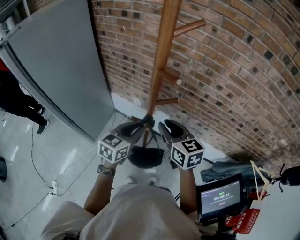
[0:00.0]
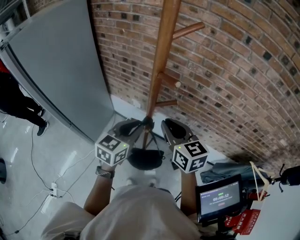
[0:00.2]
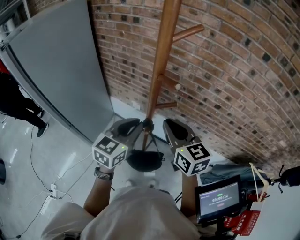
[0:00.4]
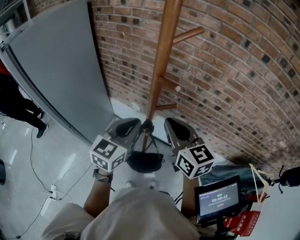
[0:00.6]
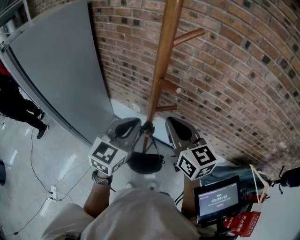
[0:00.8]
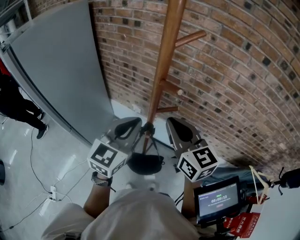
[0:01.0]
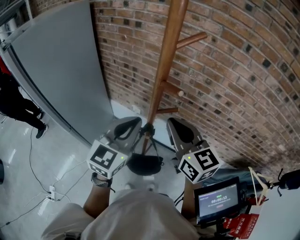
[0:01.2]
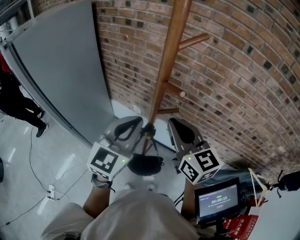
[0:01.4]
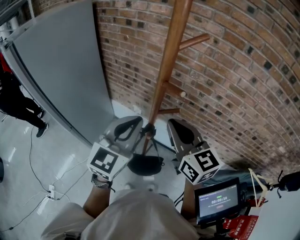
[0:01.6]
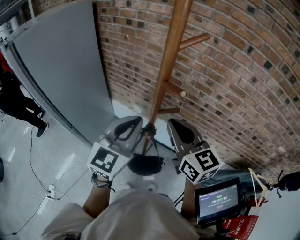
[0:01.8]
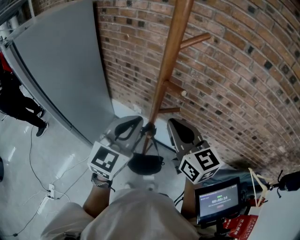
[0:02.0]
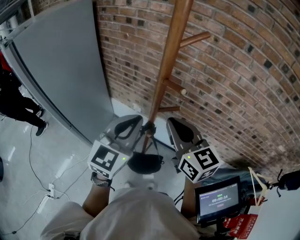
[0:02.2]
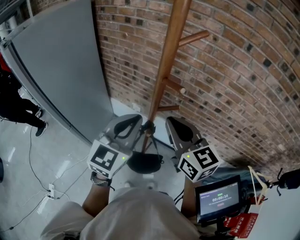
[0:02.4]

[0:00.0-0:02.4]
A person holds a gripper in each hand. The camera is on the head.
0:00.0 to 0:01.2: Both grippers travel together upward, about 15 cm. The left gripper changes its angle by approximately 20 degrees. The right gripper closes.
0:01.2 to 0:02.4: There are only small adjustments of the grippers.

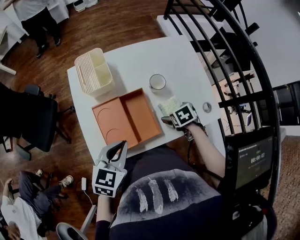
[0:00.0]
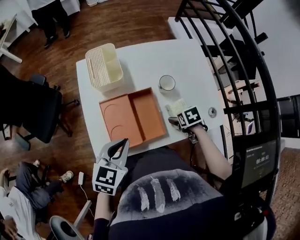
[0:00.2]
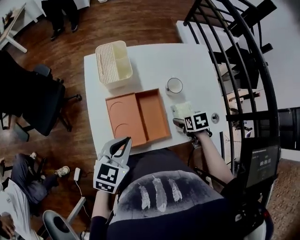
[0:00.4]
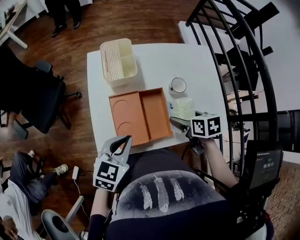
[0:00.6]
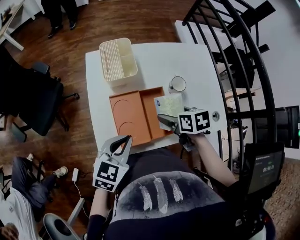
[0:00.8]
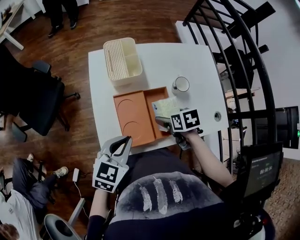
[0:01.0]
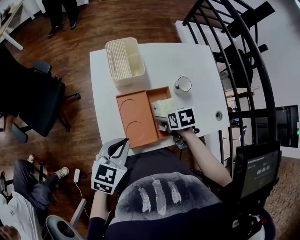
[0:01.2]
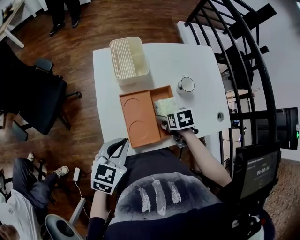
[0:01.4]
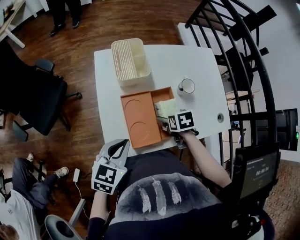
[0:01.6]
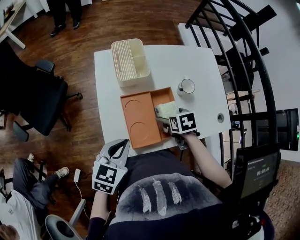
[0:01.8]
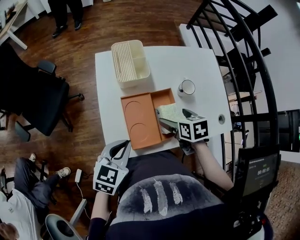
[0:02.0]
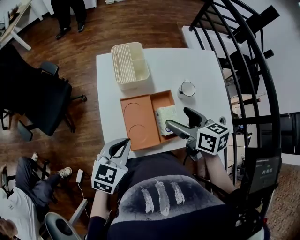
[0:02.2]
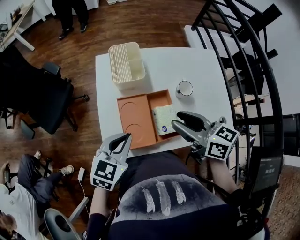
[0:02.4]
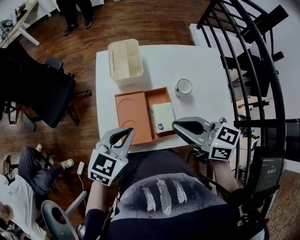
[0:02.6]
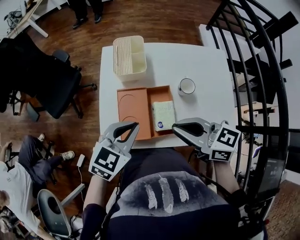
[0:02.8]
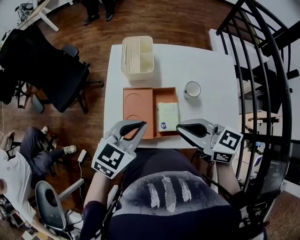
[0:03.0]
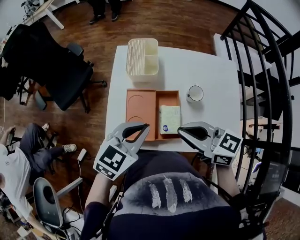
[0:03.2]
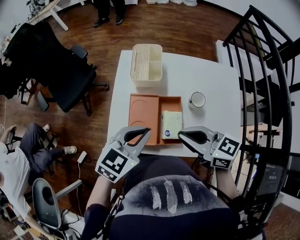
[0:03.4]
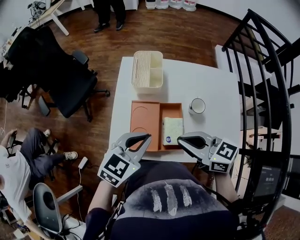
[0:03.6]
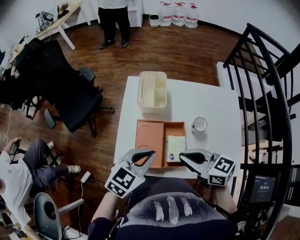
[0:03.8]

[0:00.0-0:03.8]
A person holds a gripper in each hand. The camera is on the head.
0:00.0 to 0:01.2: The left gripper changes place by approximately 10 cm; the right gripper travels upward and back again, some 10 cm each way.
0:01.2 to 0:02.6: The right gripper shifts about 20 cm upward, tips its fingers upward by approximately 50 degrees, and closes; the left gripper shifts some 5 cm to the right.
0:02.6 to 0:03.8: The grippers move only a little.

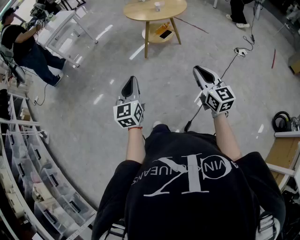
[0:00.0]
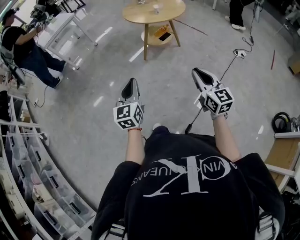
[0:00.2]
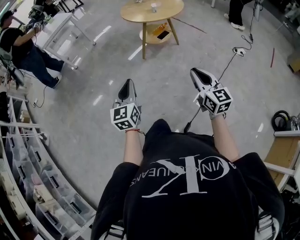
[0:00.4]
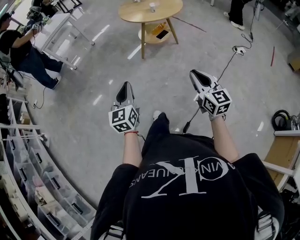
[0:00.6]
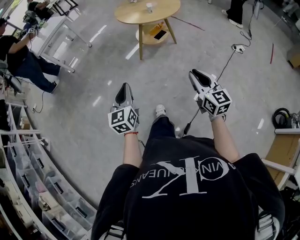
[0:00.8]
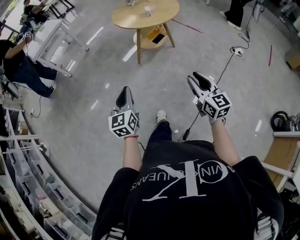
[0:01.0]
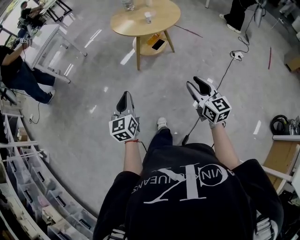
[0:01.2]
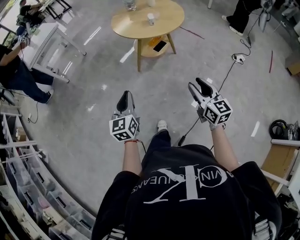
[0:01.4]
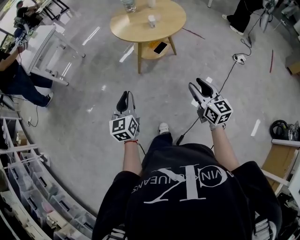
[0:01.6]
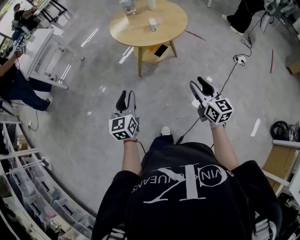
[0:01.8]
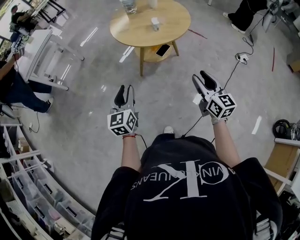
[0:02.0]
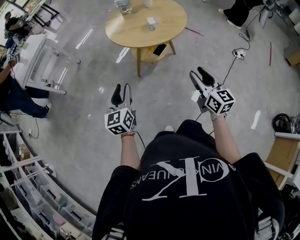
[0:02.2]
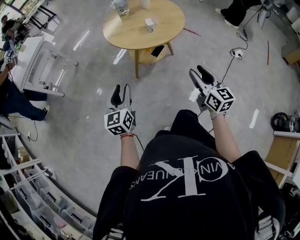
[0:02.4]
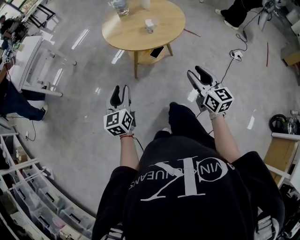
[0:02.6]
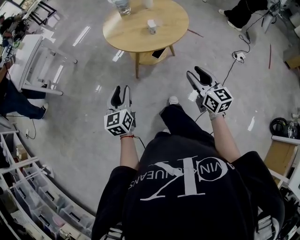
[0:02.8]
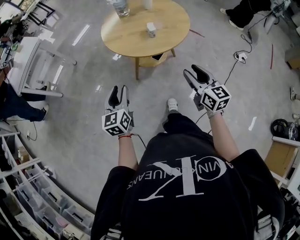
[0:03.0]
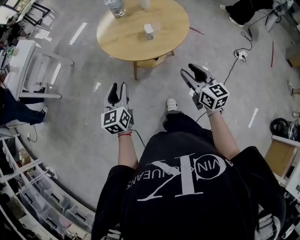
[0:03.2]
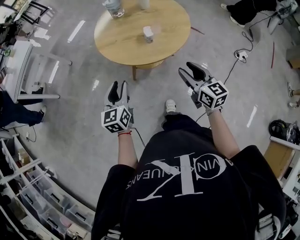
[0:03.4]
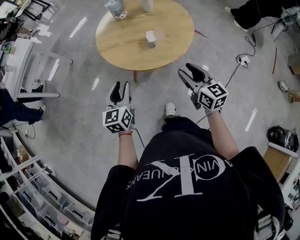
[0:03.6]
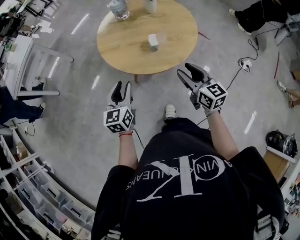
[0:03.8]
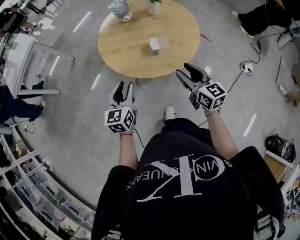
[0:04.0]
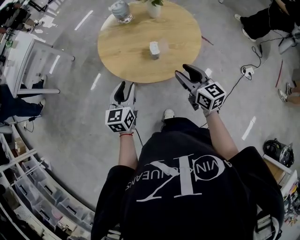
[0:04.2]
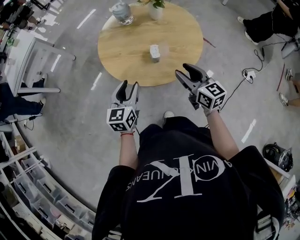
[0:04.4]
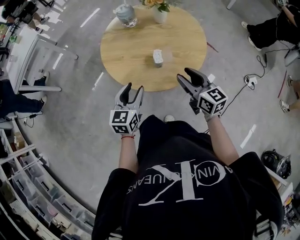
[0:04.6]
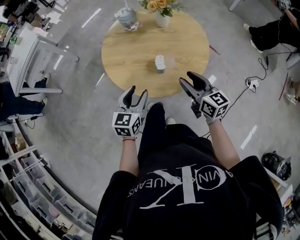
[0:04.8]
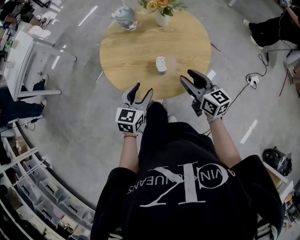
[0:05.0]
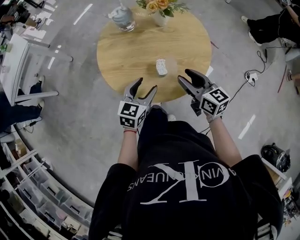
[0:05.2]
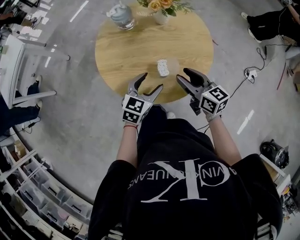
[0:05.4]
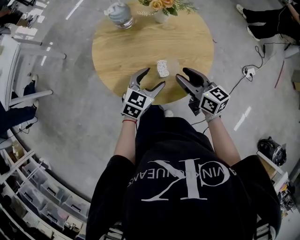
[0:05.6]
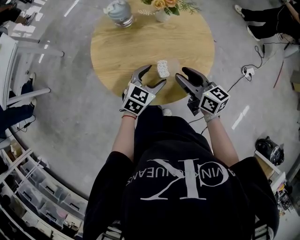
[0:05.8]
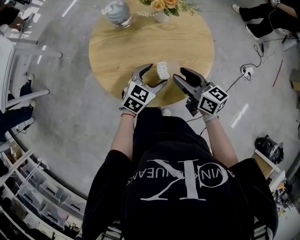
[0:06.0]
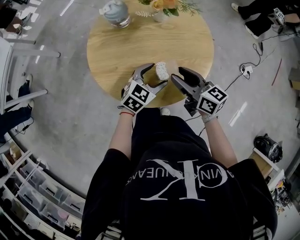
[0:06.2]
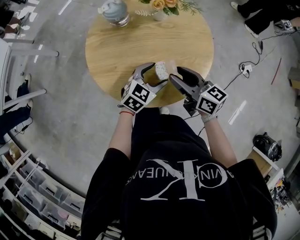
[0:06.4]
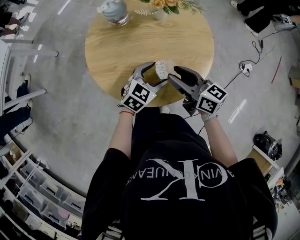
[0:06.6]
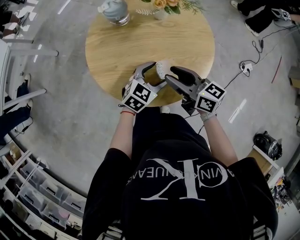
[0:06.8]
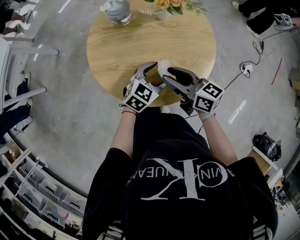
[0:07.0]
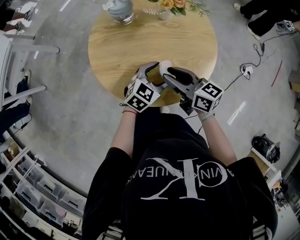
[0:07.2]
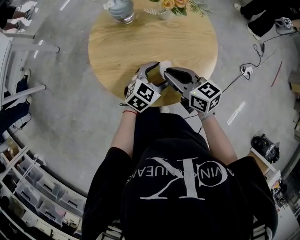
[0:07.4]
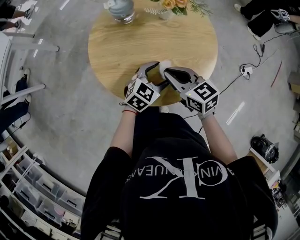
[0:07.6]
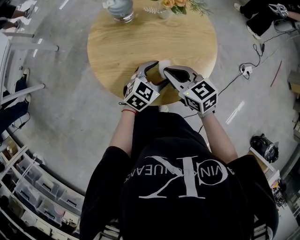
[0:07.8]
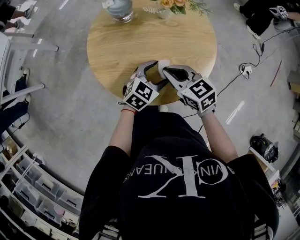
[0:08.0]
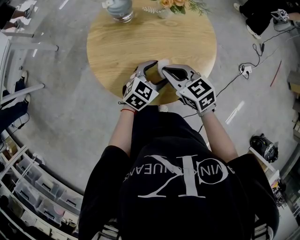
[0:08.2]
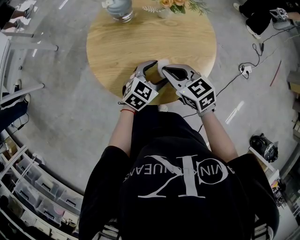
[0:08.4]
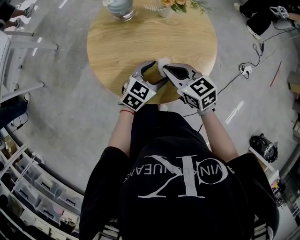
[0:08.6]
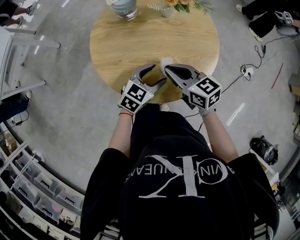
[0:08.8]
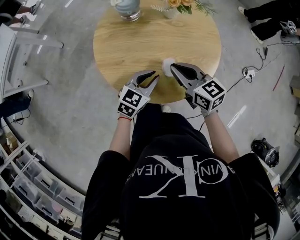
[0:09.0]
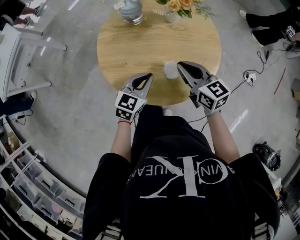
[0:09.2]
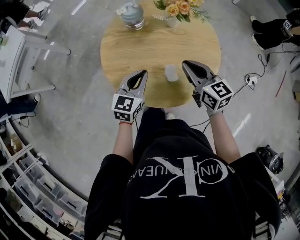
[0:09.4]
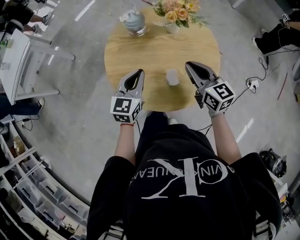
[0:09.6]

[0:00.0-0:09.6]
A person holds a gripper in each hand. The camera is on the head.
0:00.0 to 0:01.6: Both grippers move forward, some 25 cm. The right gripper opens up.
0:01.6 to 0:03.2: The grippers both shift forward by roughly 25 cm.
0:03.2 to 0:04.8: The left gripper travels forward and to the right by roughly 20 cm, while the right gripper travels forward by about 20 cm.
0:04.8 to 0:06.4: The right gripper is displaced forward by roughly 5 cm; the left gripper is displaced forward, to the right and downward by approximately 15 cm, swivels approximately 40 degrees, and opens.
0:06.4 to 0:08.0: The right gripper goes approximately 5 cm to the left, swivels approximately 30 degrees, and closes up.
0:08.0 to 0:09.6: The left gripper is displaced to the left and upward by about 15 cm, changes its angle by some 40 degrees, and closes its fingers. Meanwhile the right gripper shifts roughly 10 cm upward and to the right, and changes its angle by approximately 20 degrees.

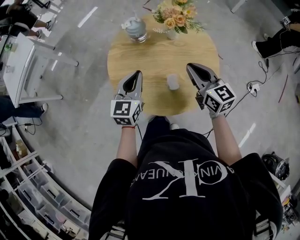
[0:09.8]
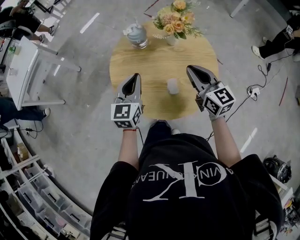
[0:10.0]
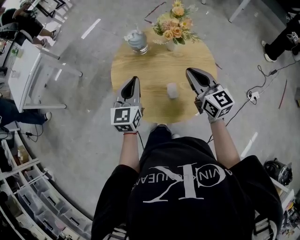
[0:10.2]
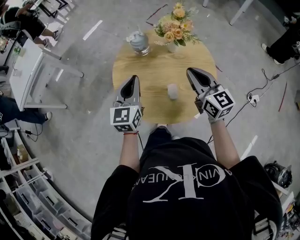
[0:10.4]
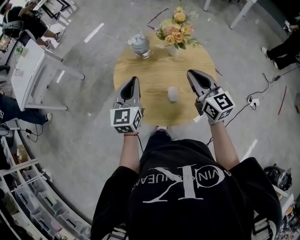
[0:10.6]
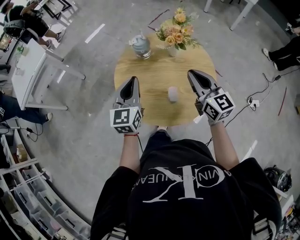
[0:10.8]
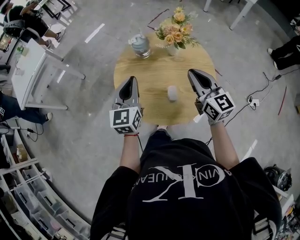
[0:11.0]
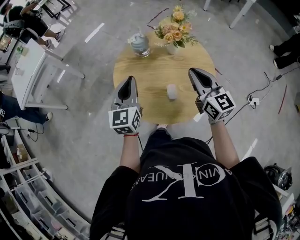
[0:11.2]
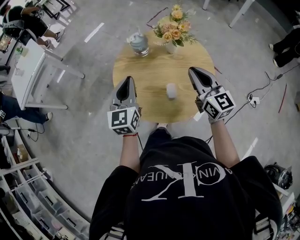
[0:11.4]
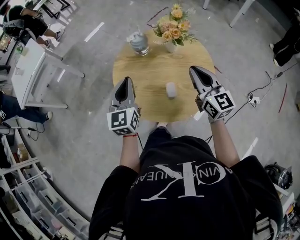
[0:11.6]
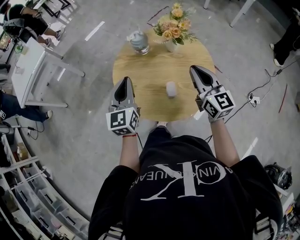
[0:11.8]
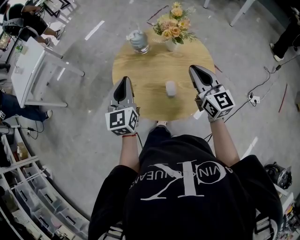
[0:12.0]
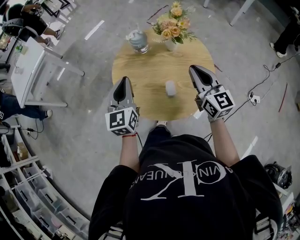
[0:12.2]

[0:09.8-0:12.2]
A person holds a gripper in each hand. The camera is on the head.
0:09.8 to 0:11.0: The grippers both shift upward by about 5 cm.
0:11.0 to 0:12.2: The grippers stay close to where they were, moving slightly.

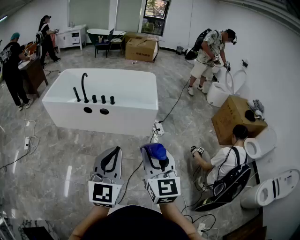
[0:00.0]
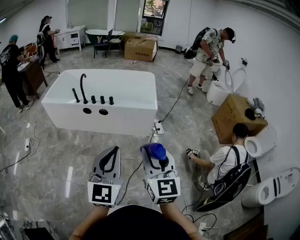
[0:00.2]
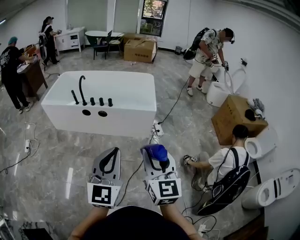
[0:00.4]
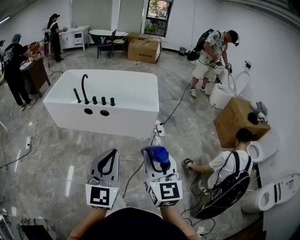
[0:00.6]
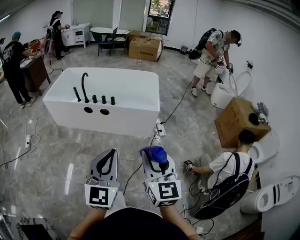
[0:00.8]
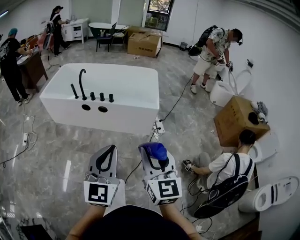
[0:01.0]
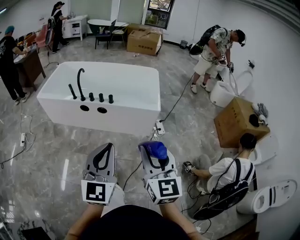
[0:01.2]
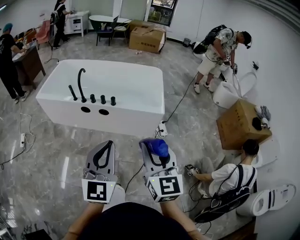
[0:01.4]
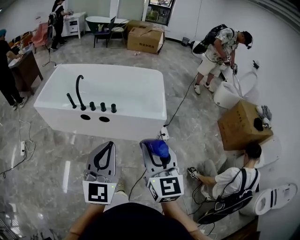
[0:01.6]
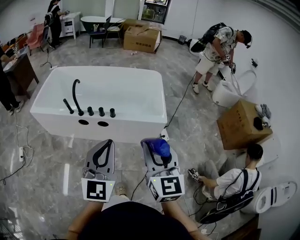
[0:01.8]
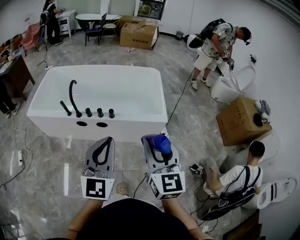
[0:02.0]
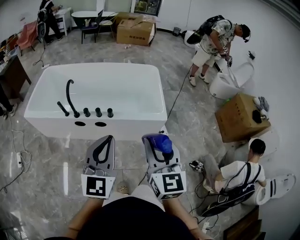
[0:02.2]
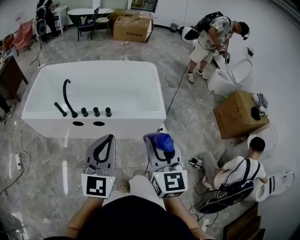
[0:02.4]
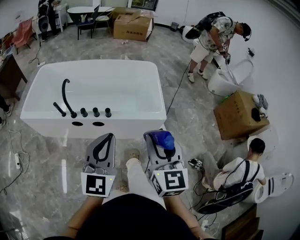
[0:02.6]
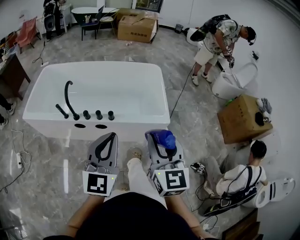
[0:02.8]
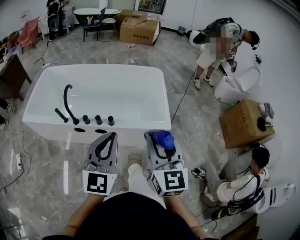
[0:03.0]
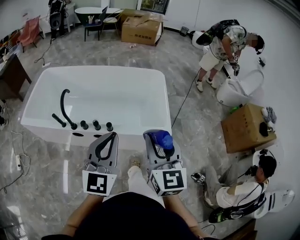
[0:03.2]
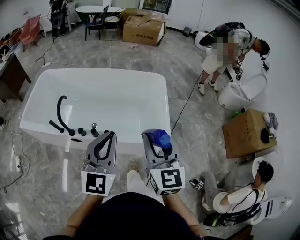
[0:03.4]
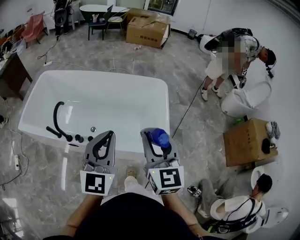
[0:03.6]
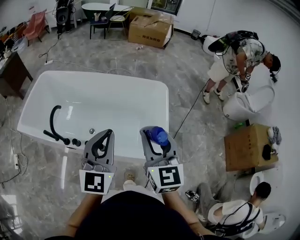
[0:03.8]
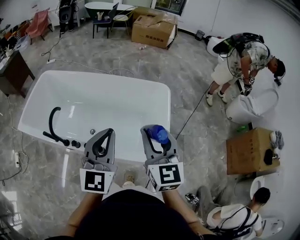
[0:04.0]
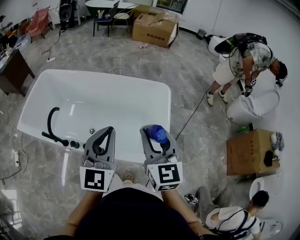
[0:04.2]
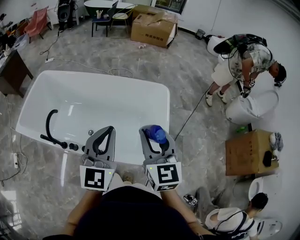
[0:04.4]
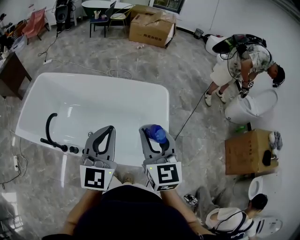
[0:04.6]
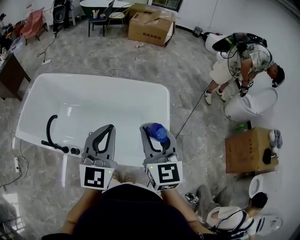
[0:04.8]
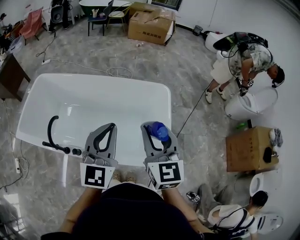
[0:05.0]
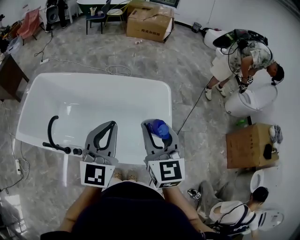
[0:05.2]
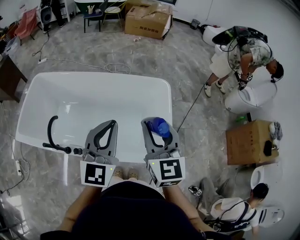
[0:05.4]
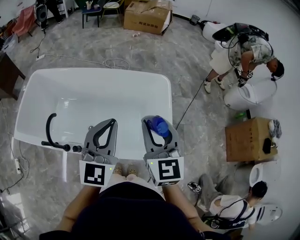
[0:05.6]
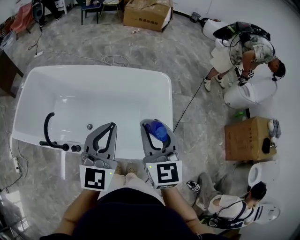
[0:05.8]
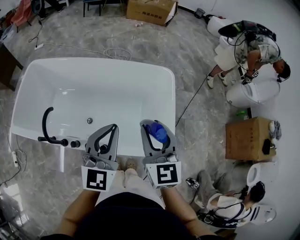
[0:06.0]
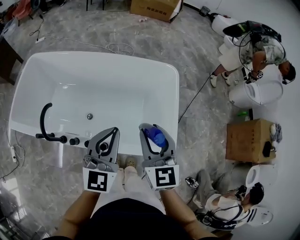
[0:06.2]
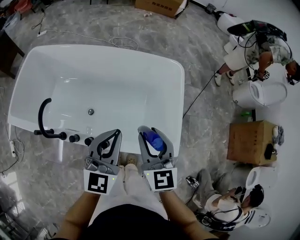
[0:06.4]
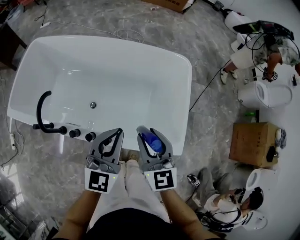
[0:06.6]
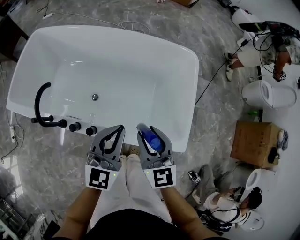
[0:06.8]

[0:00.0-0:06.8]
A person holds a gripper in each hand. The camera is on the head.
0:00.0 to 0:01.4: The grippers both shift forward by approximately 20 cm.
0:01.4 to 0:02.8: The two grippers go approximately 25 cm forward.
0:02.8 to 0:04.0: Both grippers travel together forward, about 35 cm.
0:04.0 to 0:05.4: The two grippers go some 10 cm forward.
0:05.4 to 0:06.8: The grippers both shift downward by some 20 cm.
